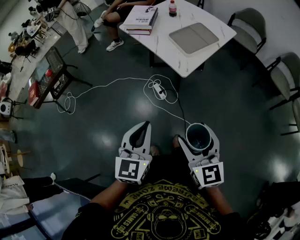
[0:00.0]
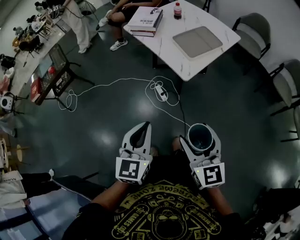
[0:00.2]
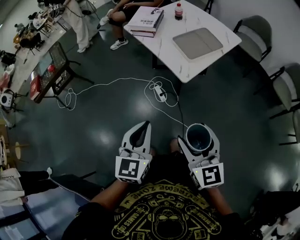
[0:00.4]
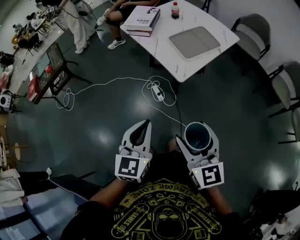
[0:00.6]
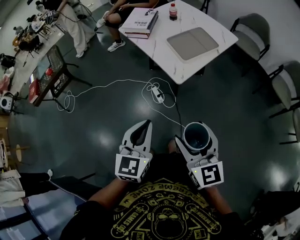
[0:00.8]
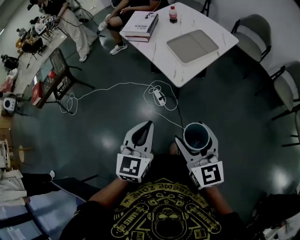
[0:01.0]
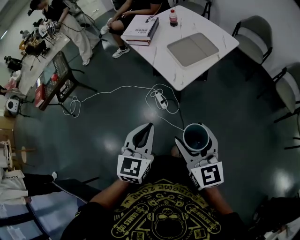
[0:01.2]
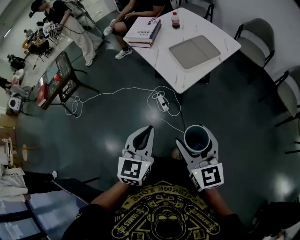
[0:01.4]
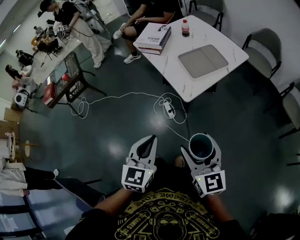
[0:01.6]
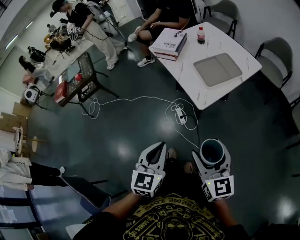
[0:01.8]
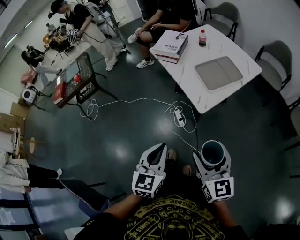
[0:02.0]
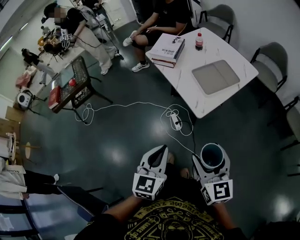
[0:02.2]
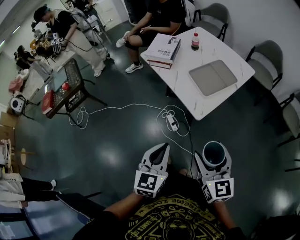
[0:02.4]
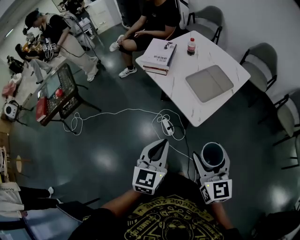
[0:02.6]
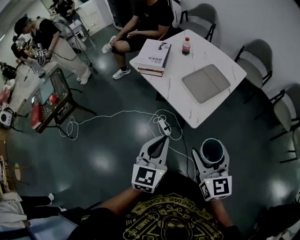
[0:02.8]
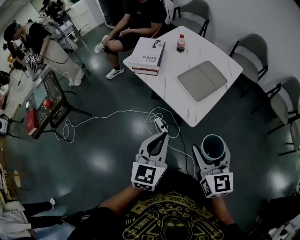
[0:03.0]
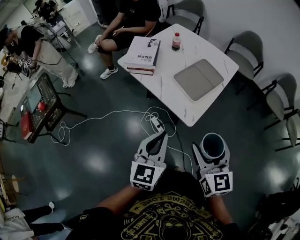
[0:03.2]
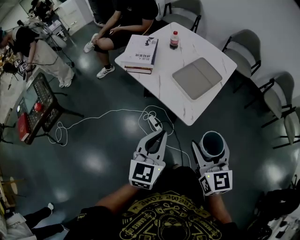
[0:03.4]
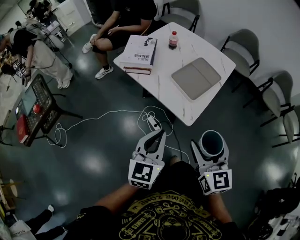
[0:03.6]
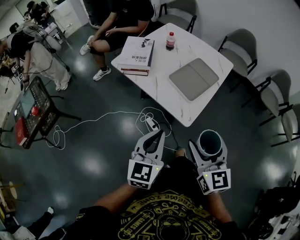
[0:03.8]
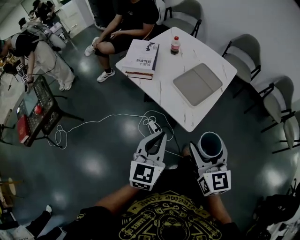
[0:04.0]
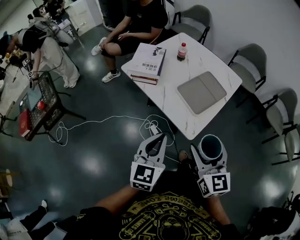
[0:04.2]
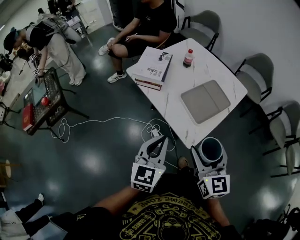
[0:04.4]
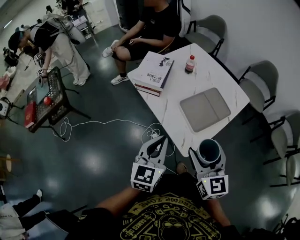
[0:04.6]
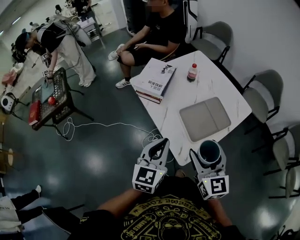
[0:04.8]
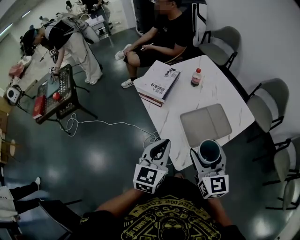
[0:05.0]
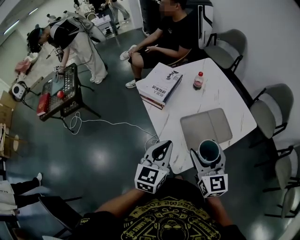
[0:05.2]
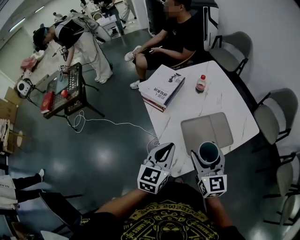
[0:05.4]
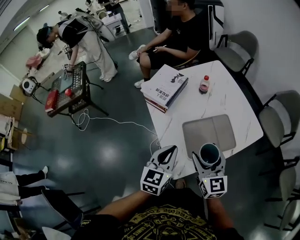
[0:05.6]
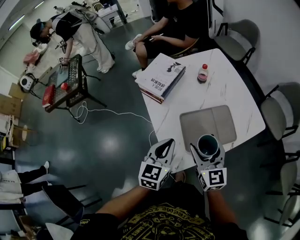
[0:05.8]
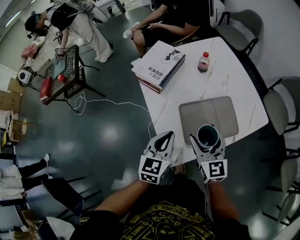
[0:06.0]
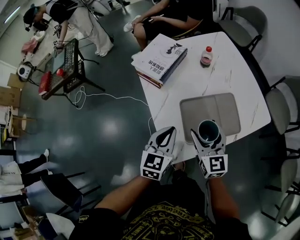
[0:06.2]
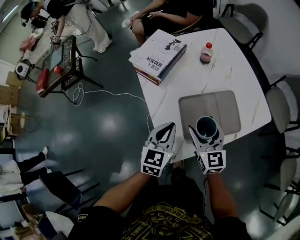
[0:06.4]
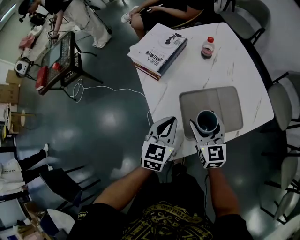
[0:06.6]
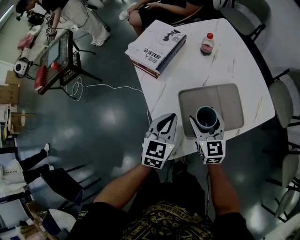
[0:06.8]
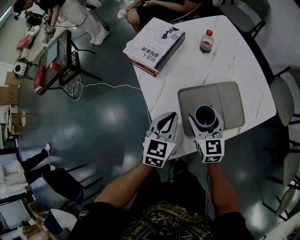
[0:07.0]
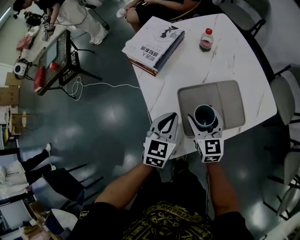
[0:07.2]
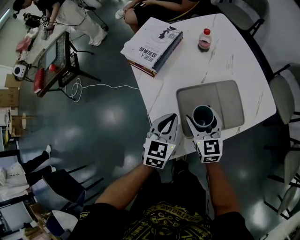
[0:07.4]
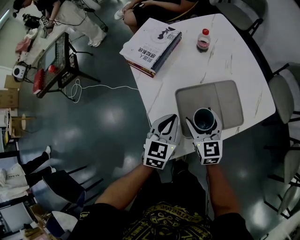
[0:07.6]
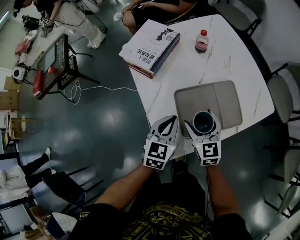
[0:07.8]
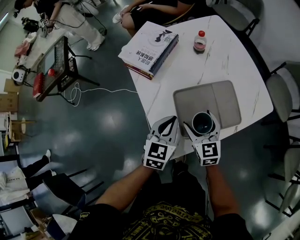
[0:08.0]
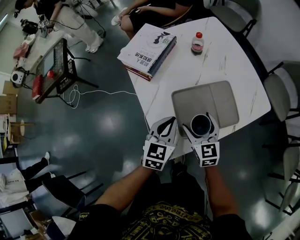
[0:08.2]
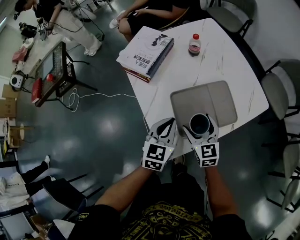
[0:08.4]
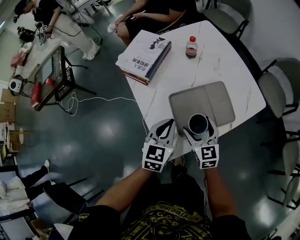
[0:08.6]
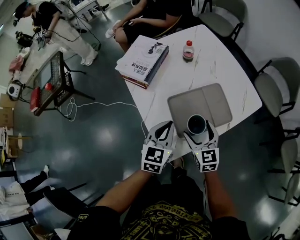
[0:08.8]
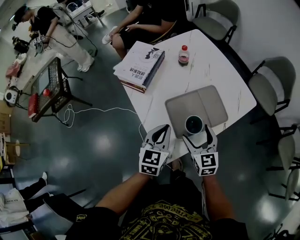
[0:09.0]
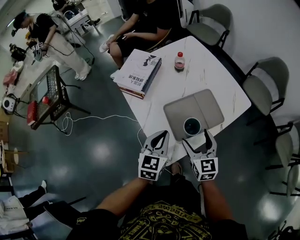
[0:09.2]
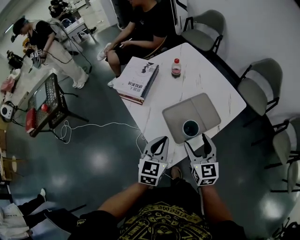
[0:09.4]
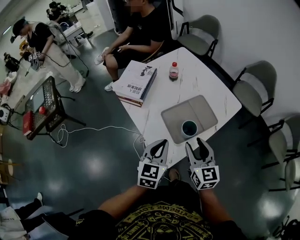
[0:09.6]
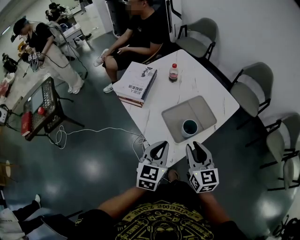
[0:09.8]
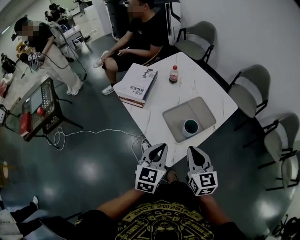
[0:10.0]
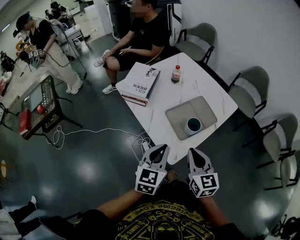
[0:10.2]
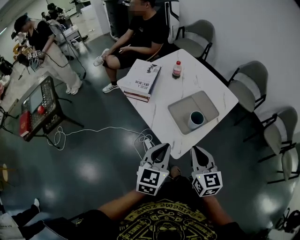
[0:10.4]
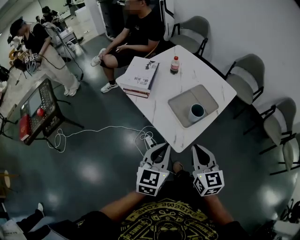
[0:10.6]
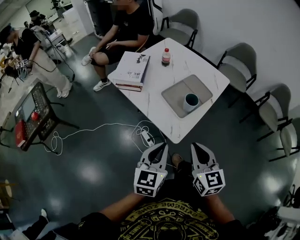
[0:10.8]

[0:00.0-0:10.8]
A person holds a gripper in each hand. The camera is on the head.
0:00.0 to 0:01.6: The left gripper moves to the right, about 5 cm. The right gripper travels to the right and forward by some 10 cm.
0:01.6 to 0:03.0: Both grippers travel together forward, roughly 15 cm.
0:03.0 to 0:04.6: Both grippers travel together forward, about 15 cm.
0:04.6 to 0:06.2: The right gripper is displaced forward, downward and to the right by some 25 cm, while the left gripper travels to the right, downward and forward by approximately 20 cm.
0:06.2 to 0:07.8: The left gripper goes about 5 cm downward; the right gripper shifts roughly 10 cm downward.
0:07.8 to 0:09.2: The left gripper travels upward by some 5 cm, while the right gripper goes approximately 10 cm backward and upward.
0:09.2 to 0:10.8: The left gripper moves backward, some 20 cm. The right gripper travels backward and upward by roughly 25 cm, and closes.

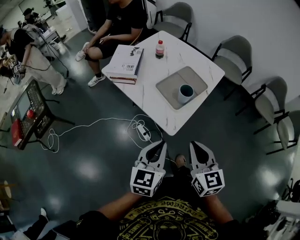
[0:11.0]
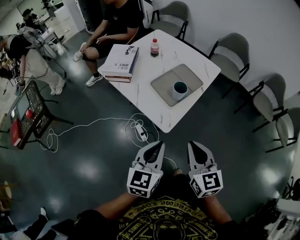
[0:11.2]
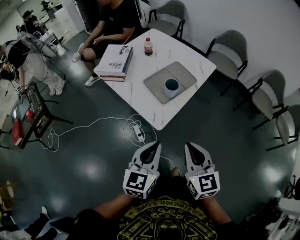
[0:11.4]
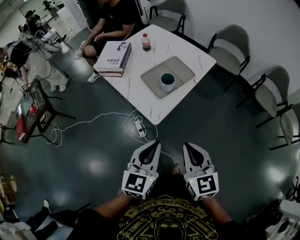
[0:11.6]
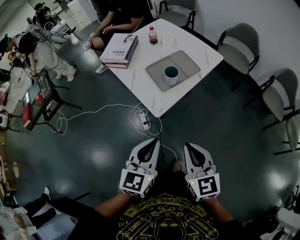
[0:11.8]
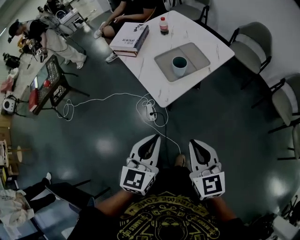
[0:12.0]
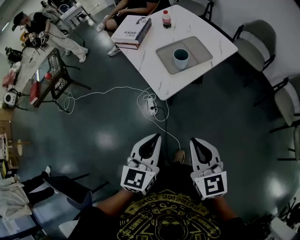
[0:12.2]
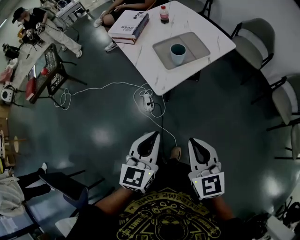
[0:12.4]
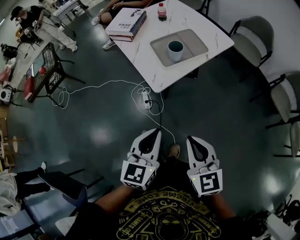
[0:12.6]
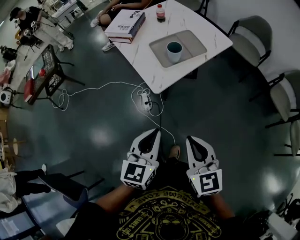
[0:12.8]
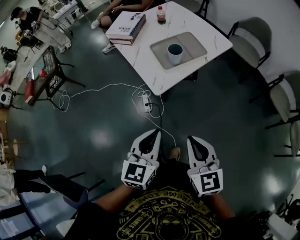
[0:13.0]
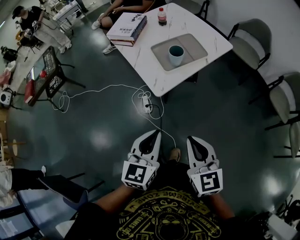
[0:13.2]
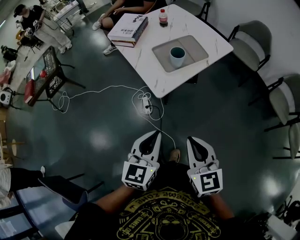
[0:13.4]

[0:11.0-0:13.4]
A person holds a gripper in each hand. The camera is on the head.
0:11.0 to 0:12.2: The right gripper moves to the right and backward, approximately 15 cm. Meanwhile the left gripper heads backward and to the right, covering some 15 cm.
0:12.2 to 0:13.4: The grippers make only small movements.

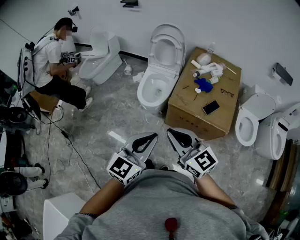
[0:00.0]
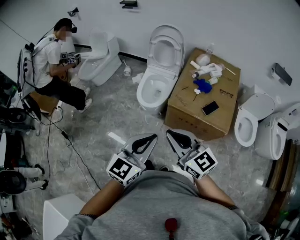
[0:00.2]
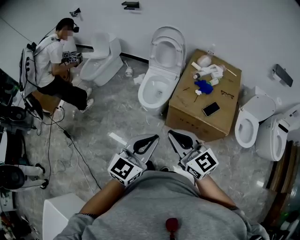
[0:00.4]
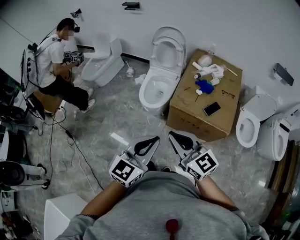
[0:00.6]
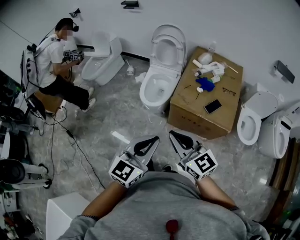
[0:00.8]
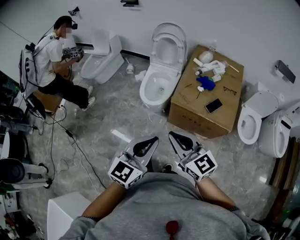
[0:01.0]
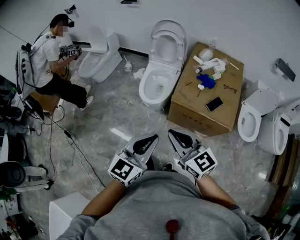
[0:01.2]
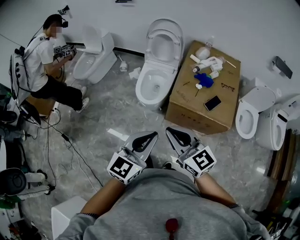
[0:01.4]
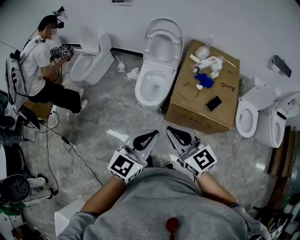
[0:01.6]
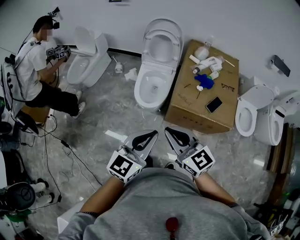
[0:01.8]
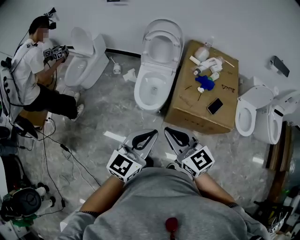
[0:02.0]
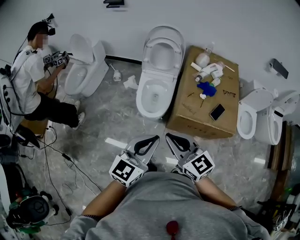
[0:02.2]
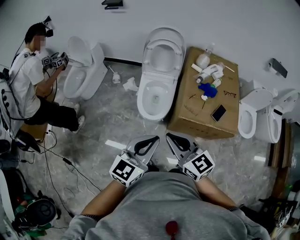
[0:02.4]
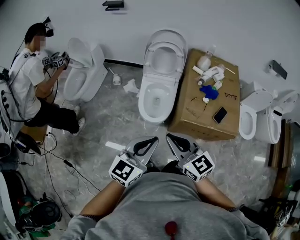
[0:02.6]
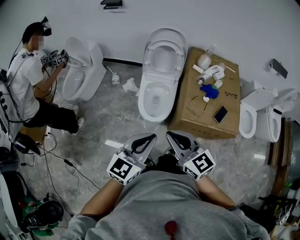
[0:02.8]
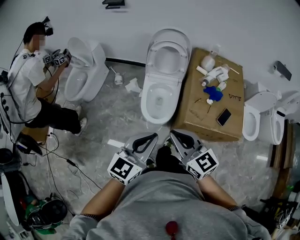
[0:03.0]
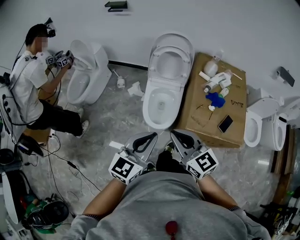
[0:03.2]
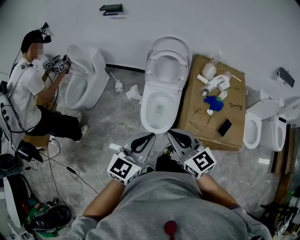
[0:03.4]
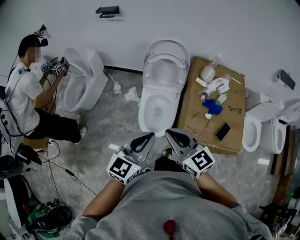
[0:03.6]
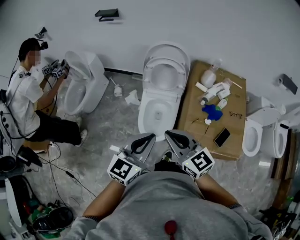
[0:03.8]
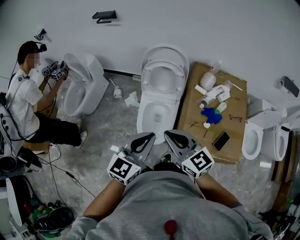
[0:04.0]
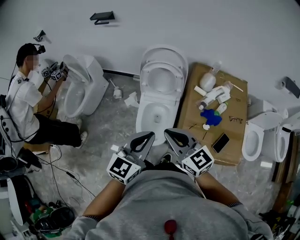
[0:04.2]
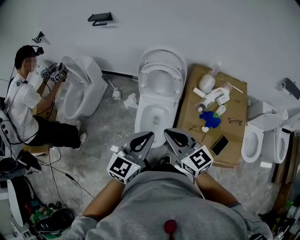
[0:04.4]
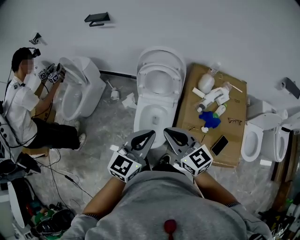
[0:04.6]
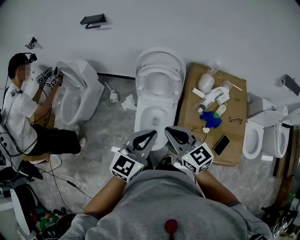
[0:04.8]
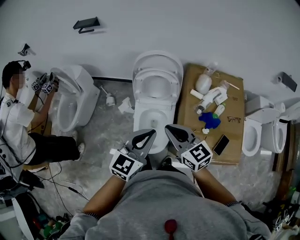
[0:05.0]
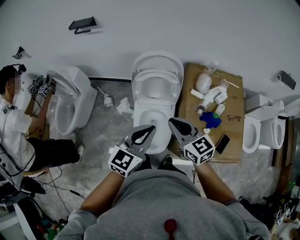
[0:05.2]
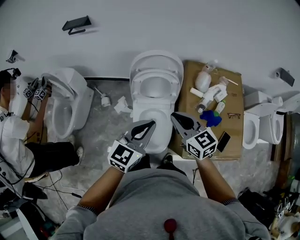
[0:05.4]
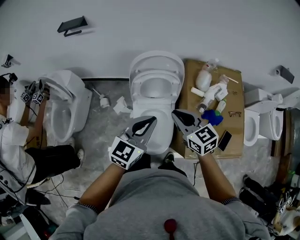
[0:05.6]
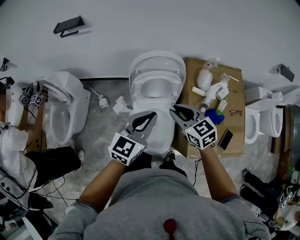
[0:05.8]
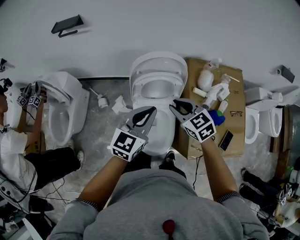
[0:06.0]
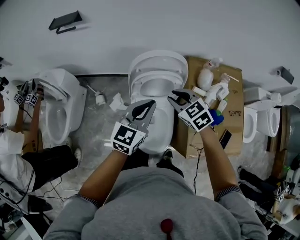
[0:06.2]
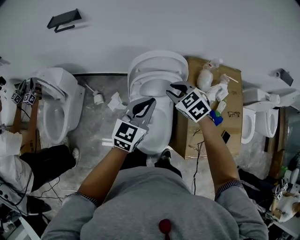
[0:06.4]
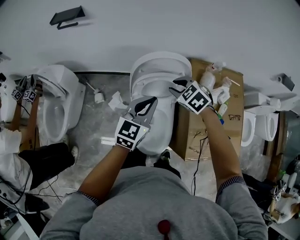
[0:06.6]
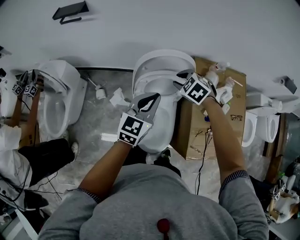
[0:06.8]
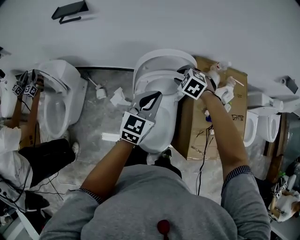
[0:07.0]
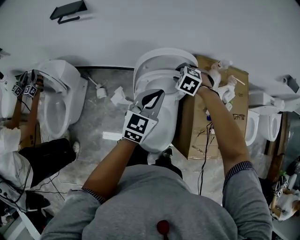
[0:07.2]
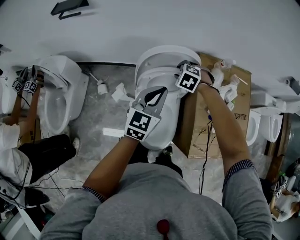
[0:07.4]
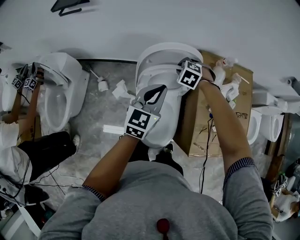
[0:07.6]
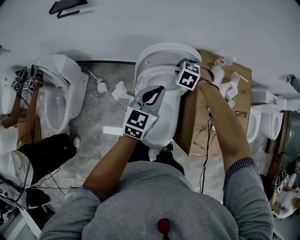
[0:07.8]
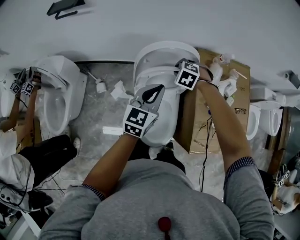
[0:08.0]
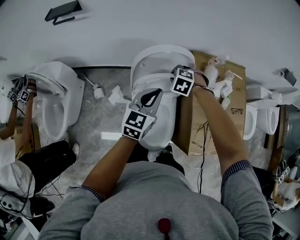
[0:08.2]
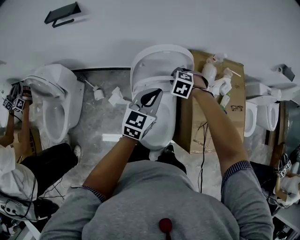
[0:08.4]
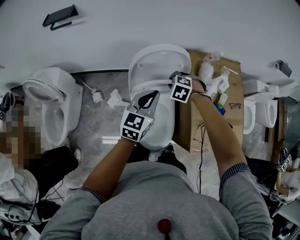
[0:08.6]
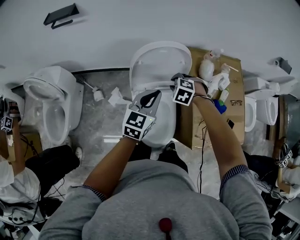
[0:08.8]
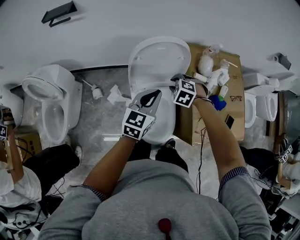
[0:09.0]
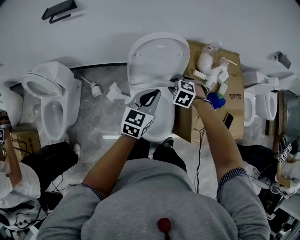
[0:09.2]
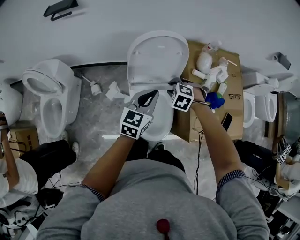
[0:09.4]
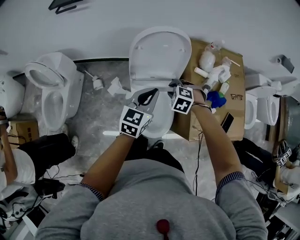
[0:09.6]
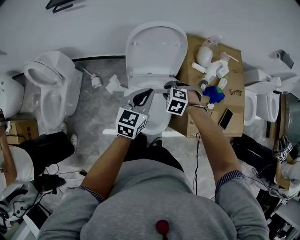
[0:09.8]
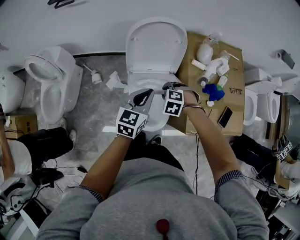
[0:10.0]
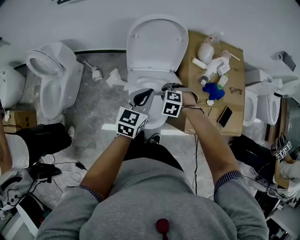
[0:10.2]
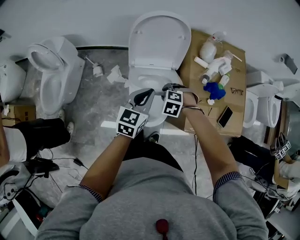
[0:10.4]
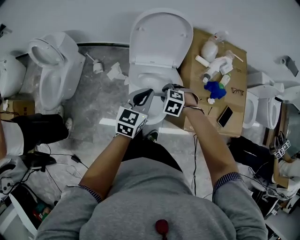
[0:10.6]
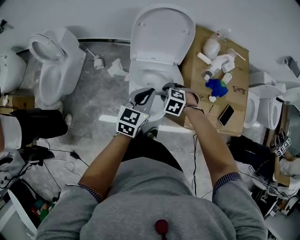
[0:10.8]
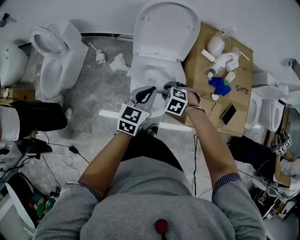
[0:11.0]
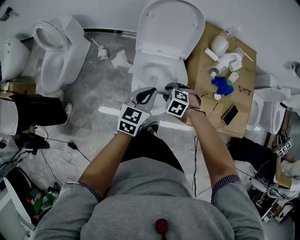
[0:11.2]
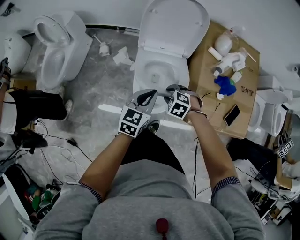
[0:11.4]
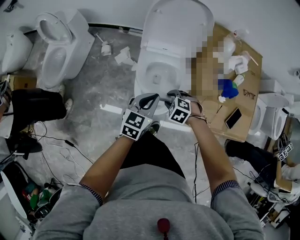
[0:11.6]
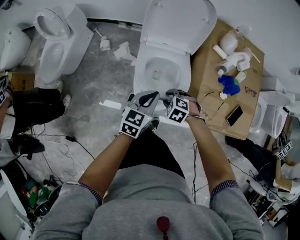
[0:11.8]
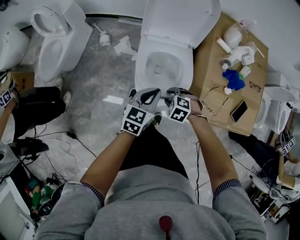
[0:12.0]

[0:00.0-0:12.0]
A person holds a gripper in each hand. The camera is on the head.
0:00.0 to 0:01.6: The two grippers go about 10 cm forward and to the left.
0:01.6 to 0:03.0: The two grippers go about 20 cm forward and to the left.
0:03.0 to 0:04.4: The grippers both shift forward and to the right by some 25 cm.
0:04.4 to 0:06.0: The two grippers go about 25 cm forward. The right gripper changes its angle by roughly 30 degrees.
0:06.0 to 0:07.6: The left gripper goes approximately 10 cm forward and downward, while the right gripper goes approximately 25 cm forward and downward, and tips its fingers downward by some 30 degrees.
0:07.6 to 0:09.0: The left gripper ends up approximately 5 cm from where it was, while the right gripper moves approximately 15 cm.
0:09.0 to 0:10.4: The right gripper ends up about 20 cm from where it was. The left gripper changes place by some 15 cm.
0:10.4 to 0:12.0: The right gripper ends up some 20 cm from where it was. Meanwhile the left gripper heads downward, covering roughly 15 cm.
